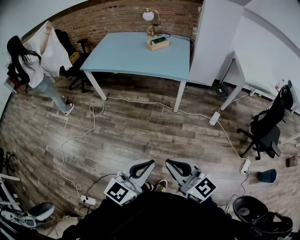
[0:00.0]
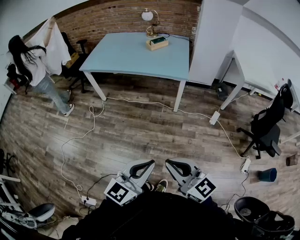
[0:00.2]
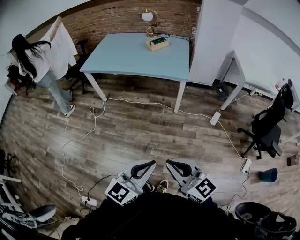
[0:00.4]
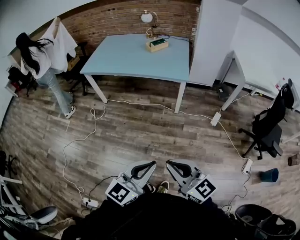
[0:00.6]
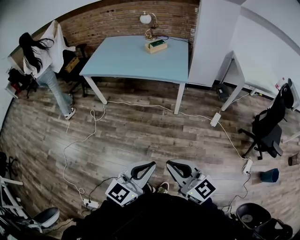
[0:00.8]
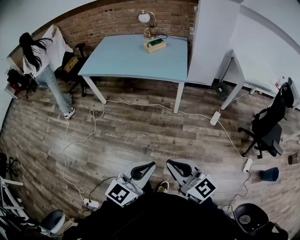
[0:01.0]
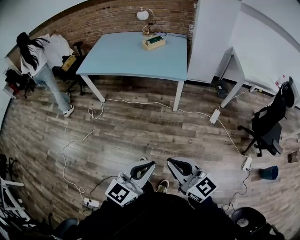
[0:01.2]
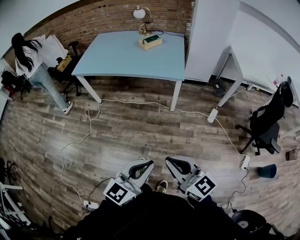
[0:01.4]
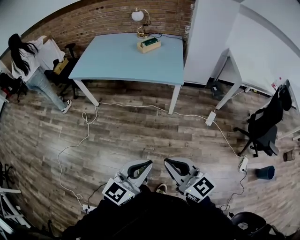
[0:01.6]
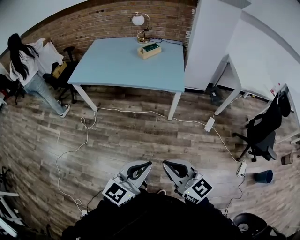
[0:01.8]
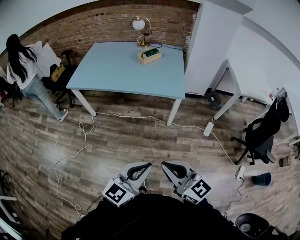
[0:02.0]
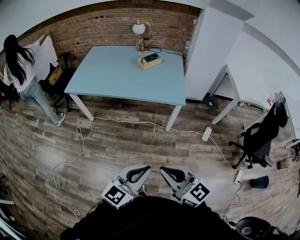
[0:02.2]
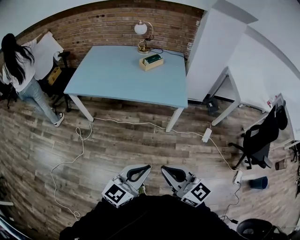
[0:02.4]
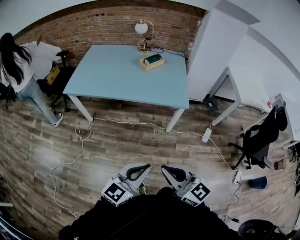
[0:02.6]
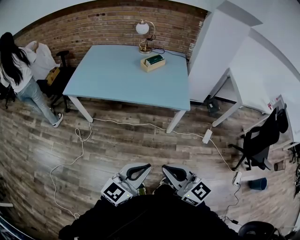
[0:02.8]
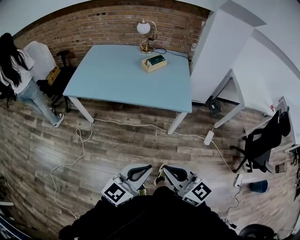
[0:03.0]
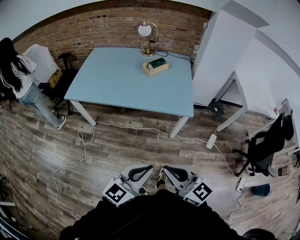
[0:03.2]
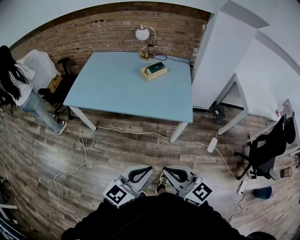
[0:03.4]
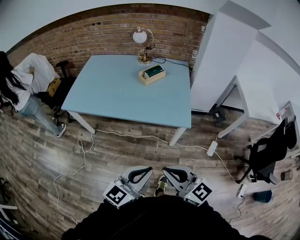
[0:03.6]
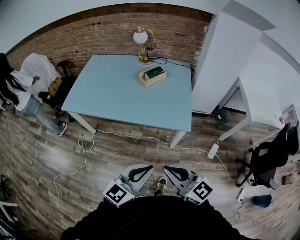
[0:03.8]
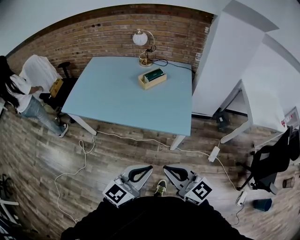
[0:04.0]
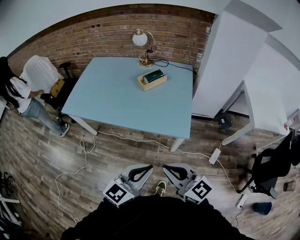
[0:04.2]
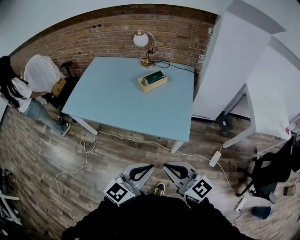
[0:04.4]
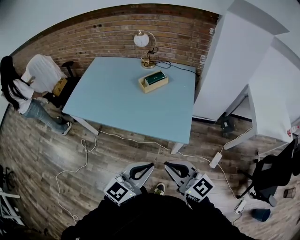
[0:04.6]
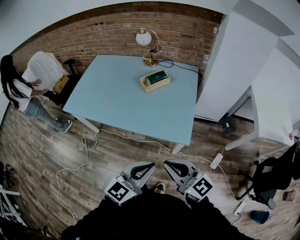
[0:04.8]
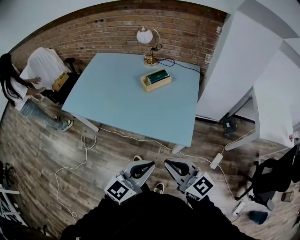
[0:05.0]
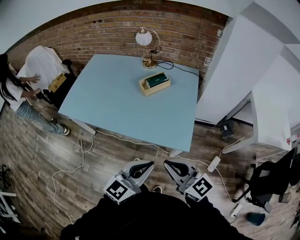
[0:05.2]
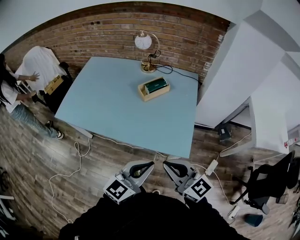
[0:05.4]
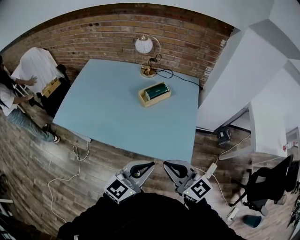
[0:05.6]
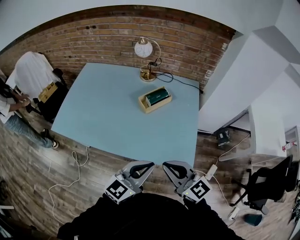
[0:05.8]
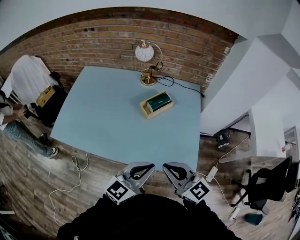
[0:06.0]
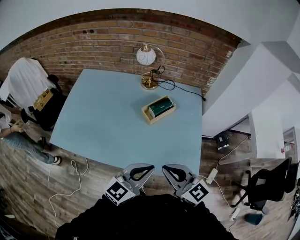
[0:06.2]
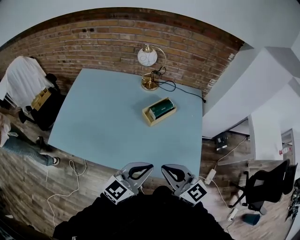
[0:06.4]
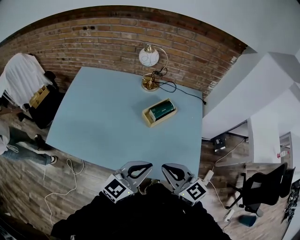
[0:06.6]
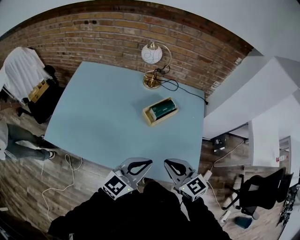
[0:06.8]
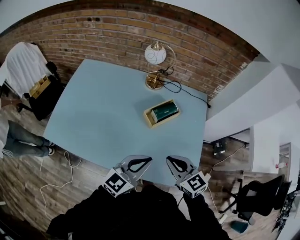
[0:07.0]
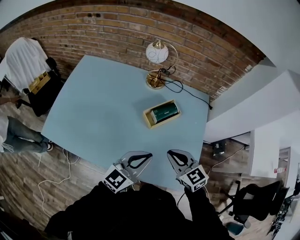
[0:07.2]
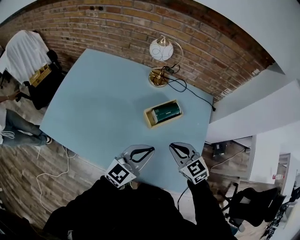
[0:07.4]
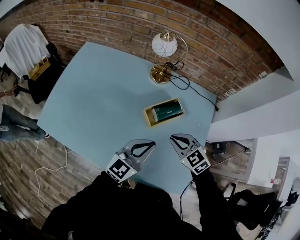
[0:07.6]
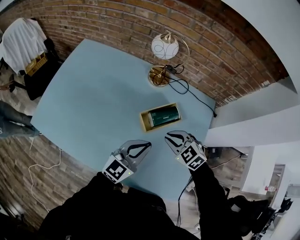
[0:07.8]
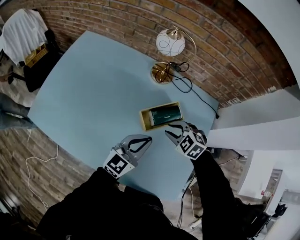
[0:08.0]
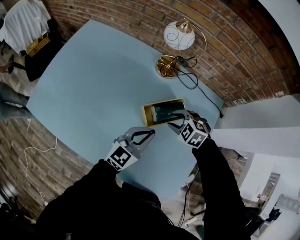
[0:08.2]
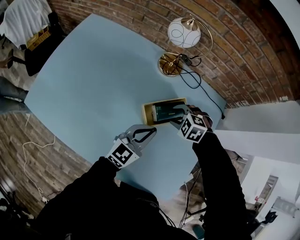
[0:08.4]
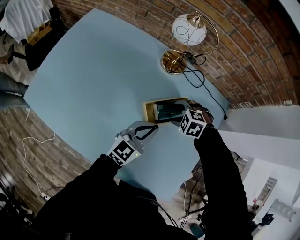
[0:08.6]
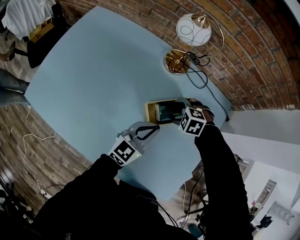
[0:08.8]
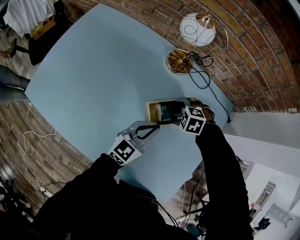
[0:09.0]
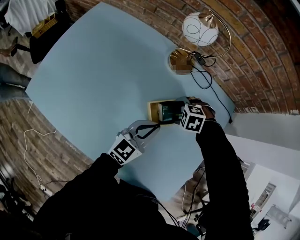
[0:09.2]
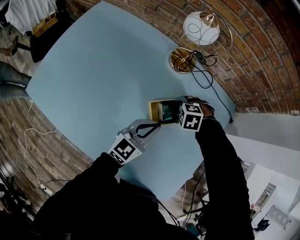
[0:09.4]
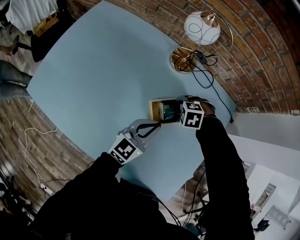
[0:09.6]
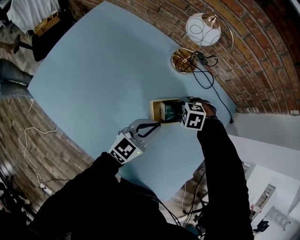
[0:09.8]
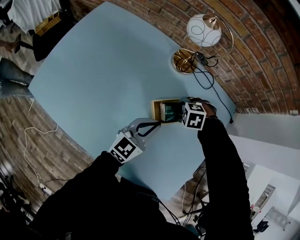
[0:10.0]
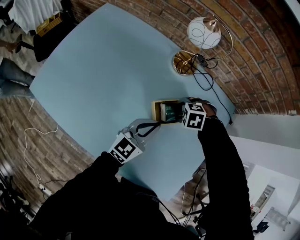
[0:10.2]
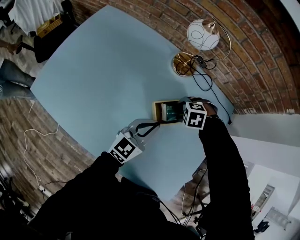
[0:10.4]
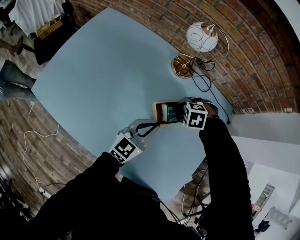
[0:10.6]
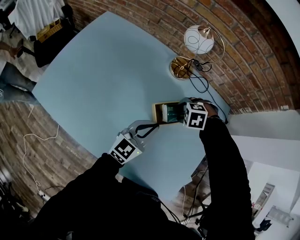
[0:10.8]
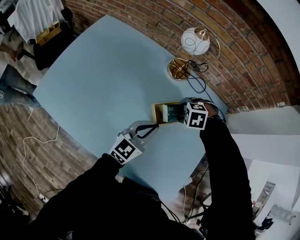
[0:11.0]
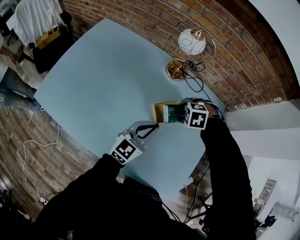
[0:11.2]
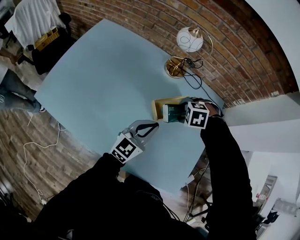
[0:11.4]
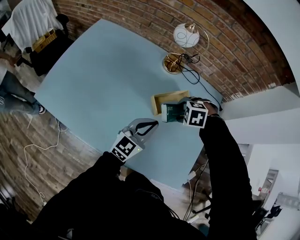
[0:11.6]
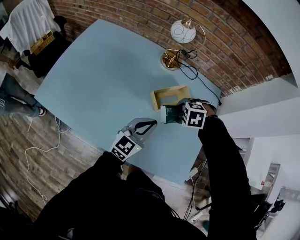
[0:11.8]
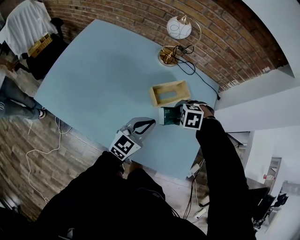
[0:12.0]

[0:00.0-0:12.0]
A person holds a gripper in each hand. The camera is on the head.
0:00.0 to 0:01.6: Both grippers travel together forward, about 10 cm.
0:01.6 to 0:03.0: Both grippers move forward and to the left, roughly 20 cm.
0:03.0 to 0:04.4: The grippers both shift forward and to the right by some 25 cm.
0:04.4 to 0:06.0: The grippers both shift forward by about 25 cm.
0:06.0 to 0:07.6: The left gripper is displaced forward by approximately 25 cm, while the right gripper is displaced forward and downward by some 35 cm, and tilts its fingers some 30 degrees downward.
0:07.6 to 0:09.0: Both grippers travel together downward, some 15 cm. The right gripper tilts its fingers about 40 degrees downward, and opens up.
0:09.0 to 0:10.4: The grippers make only small movements.
0:10.4 to 0:12.0: The left gripper moves roughly 15 cm. The right gripper moves about 15 cm.

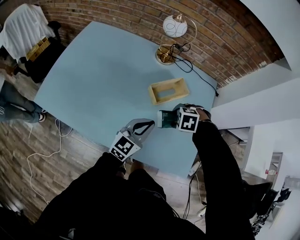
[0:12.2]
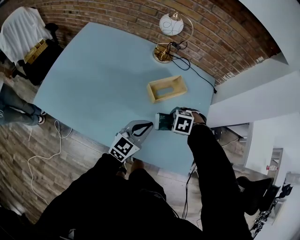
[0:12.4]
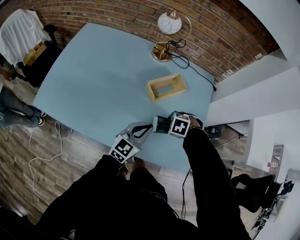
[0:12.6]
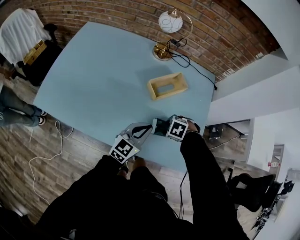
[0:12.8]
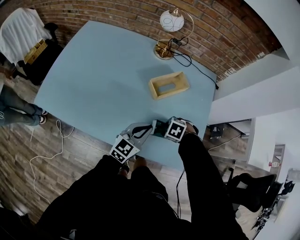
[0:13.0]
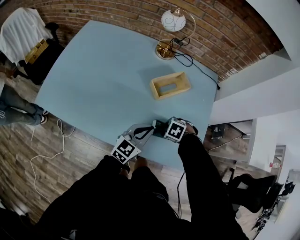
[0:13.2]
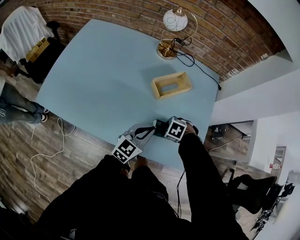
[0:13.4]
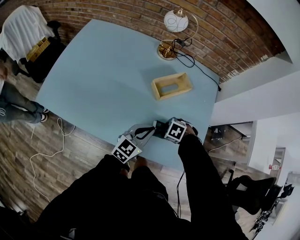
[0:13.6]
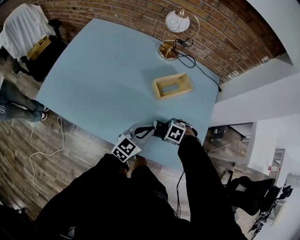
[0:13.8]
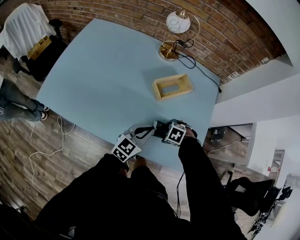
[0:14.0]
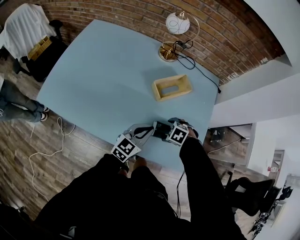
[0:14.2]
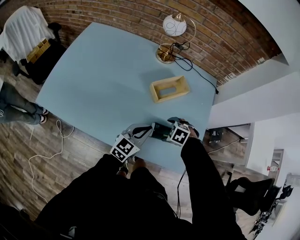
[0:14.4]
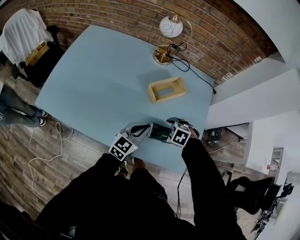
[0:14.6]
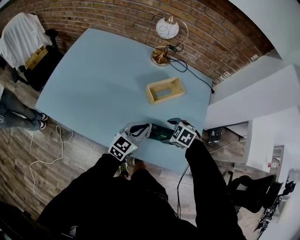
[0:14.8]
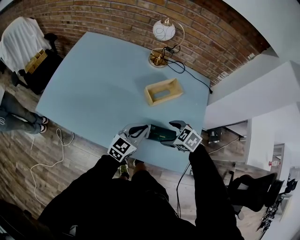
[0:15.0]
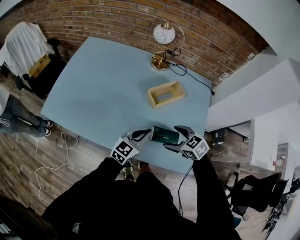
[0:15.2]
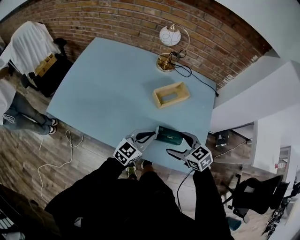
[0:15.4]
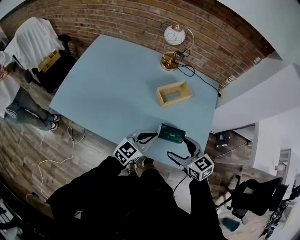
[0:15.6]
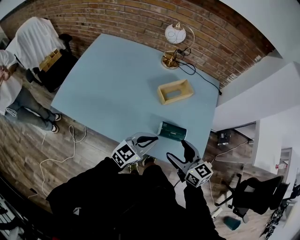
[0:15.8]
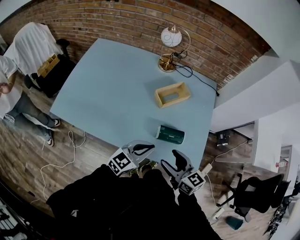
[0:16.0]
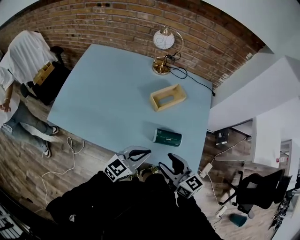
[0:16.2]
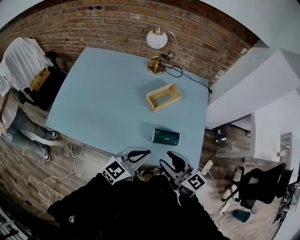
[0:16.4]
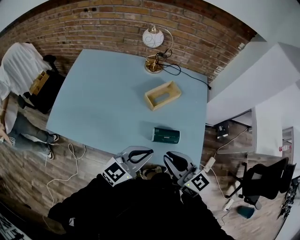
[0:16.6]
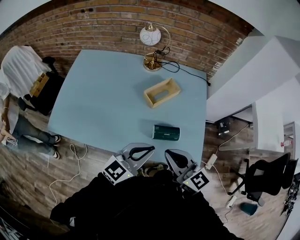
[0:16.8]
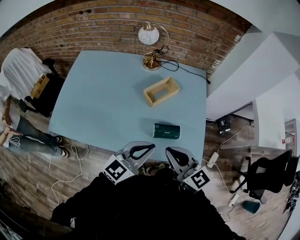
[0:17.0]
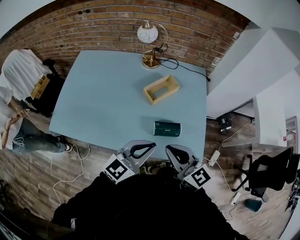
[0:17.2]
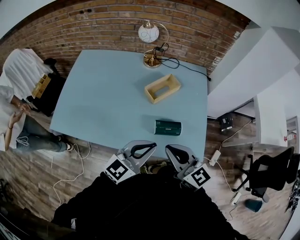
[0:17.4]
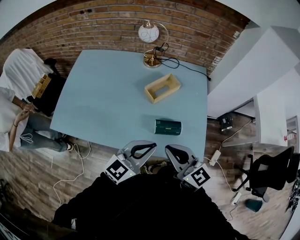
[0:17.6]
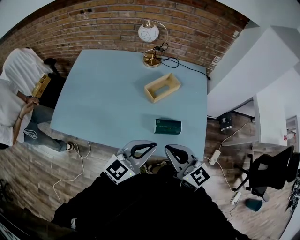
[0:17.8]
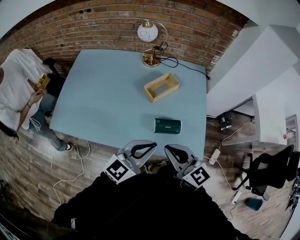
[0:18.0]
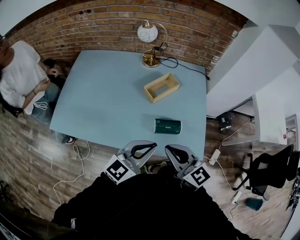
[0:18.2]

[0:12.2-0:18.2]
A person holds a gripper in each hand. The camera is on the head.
0:12.2 to 0:13.8: The right gripper is displaced downward by some 10 cm, while the left gripper travels downward by roughly 5 cm.
0:13.8 to 0:15.2: The right gripper goes approximately 15 cm upward, and points its fingers roughly 40 degrees further upward.
0:15.2 to 0:16.6: Both grippers travel together upward and backward, about 15 cm. The right gripper tilts its fingers about 40 degrees upward, and closes.
0:16.6 to 0:18.2: The grippers stay close to where they were, moving slightly.

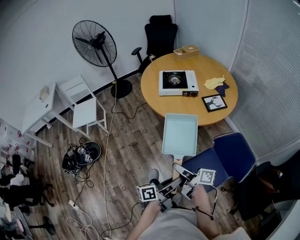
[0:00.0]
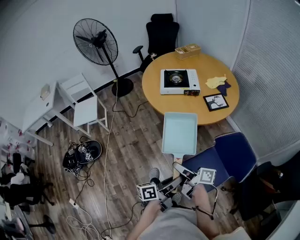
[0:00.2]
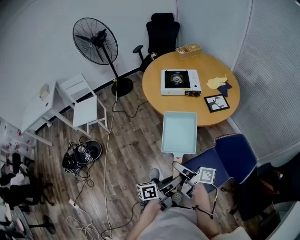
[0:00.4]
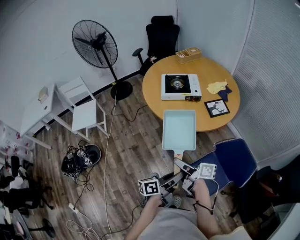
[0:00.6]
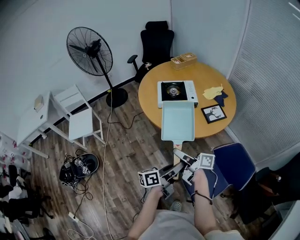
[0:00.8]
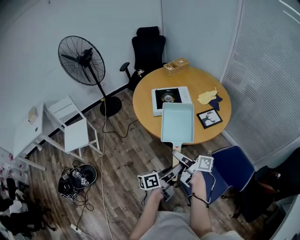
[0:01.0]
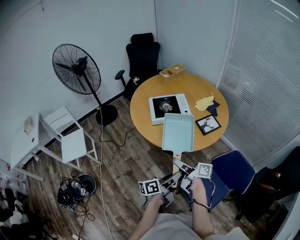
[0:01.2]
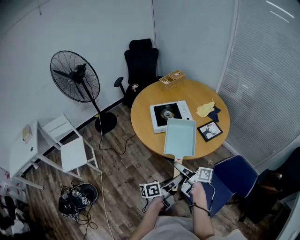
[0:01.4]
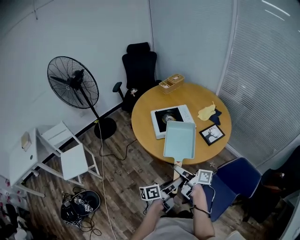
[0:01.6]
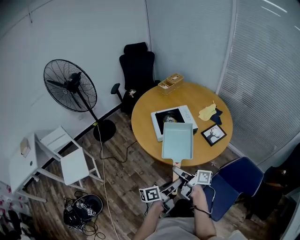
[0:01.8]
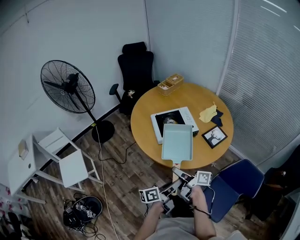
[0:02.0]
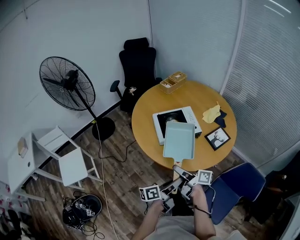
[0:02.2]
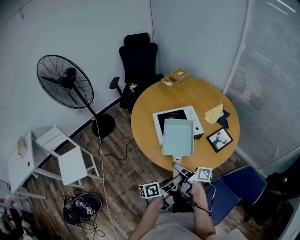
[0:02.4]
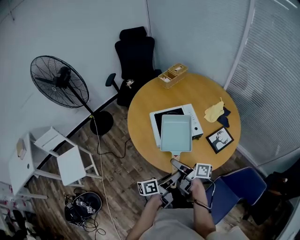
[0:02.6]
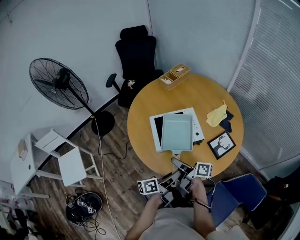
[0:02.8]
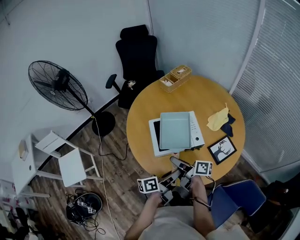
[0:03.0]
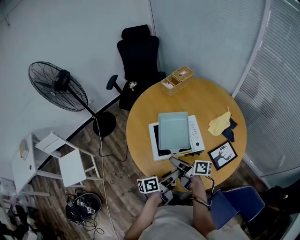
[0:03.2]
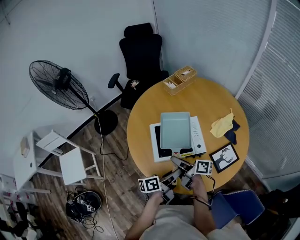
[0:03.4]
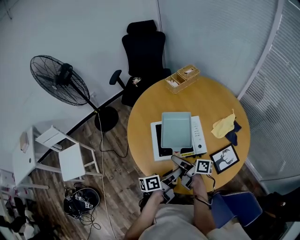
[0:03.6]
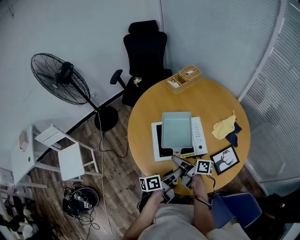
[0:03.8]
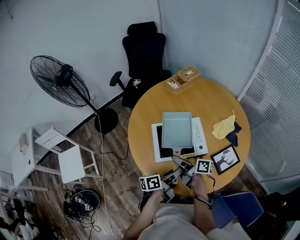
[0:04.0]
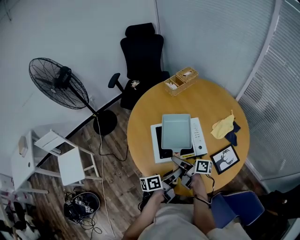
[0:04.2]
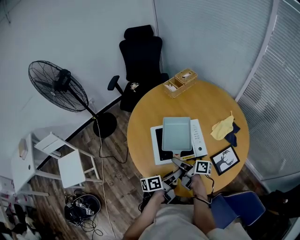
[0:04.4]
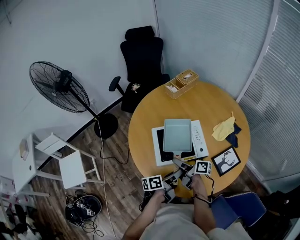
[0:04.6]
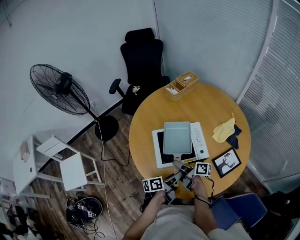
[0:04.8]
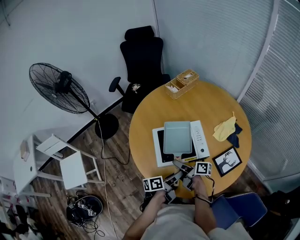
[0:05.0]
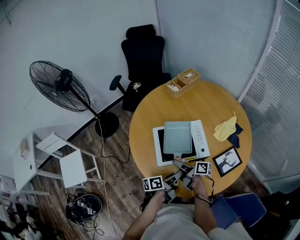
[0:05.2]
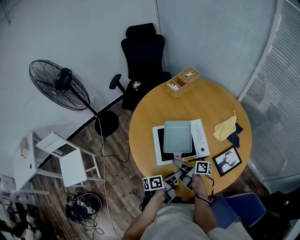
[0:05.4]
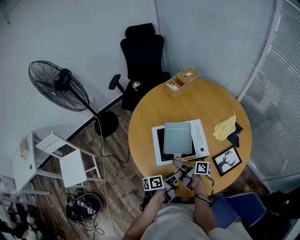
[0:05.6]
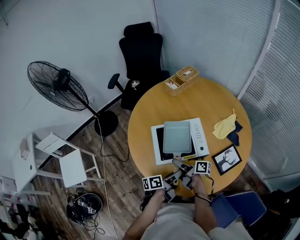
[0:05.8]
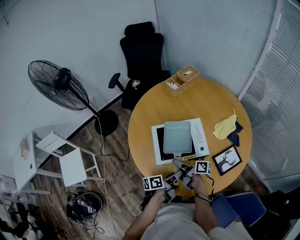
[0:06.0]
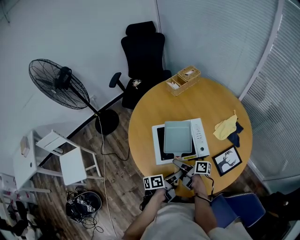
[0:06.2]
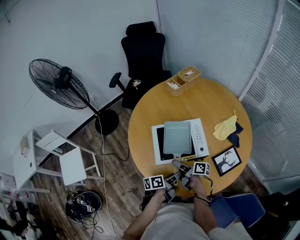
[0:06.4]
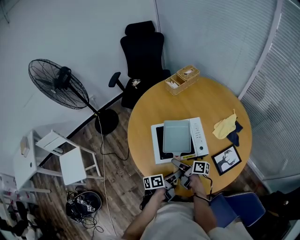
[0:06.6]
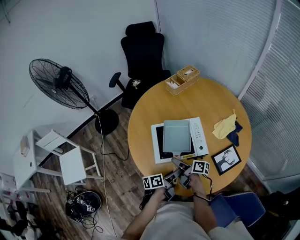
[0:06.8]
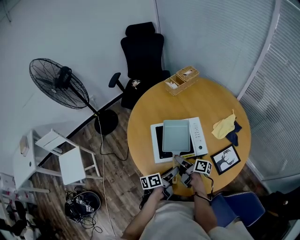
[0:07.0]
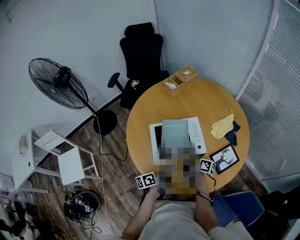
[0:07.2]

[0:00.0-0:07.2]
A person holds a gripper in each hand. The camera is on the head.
0:00.0 to 0:01.4: Both grippers travel together forward, roughly 25 cm.
0:01.4 to 0:02.8: Both grippers travel together forward, roughly 25 cm.
0:02.8 to 0:04.4: The left gripper shifts roughly 10 cm forward. The right gripper heads forward and downward, covering roughly 10 cm.
0:04.4 to 0:05.8: The grippers make only small movements.
0:05.8 to 0:07.2: The right gripper moves to the right, some 5 cm.
